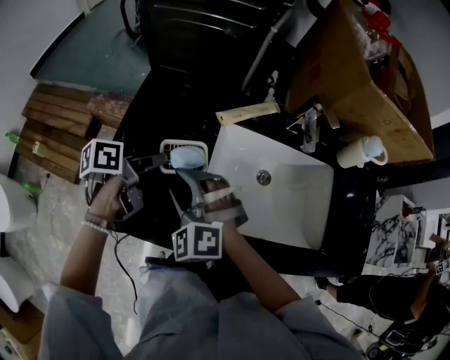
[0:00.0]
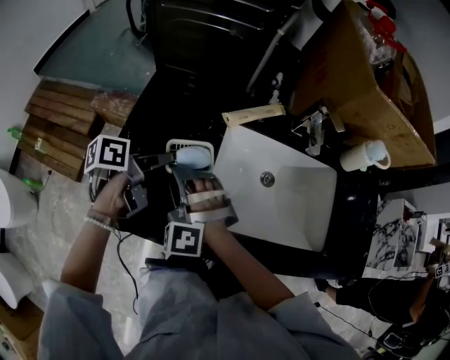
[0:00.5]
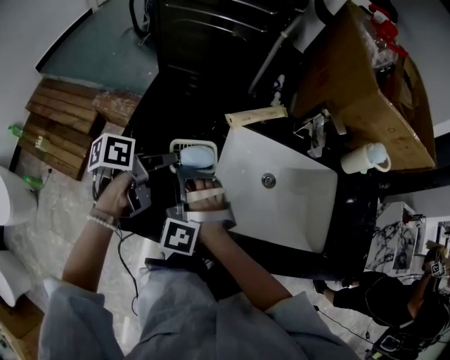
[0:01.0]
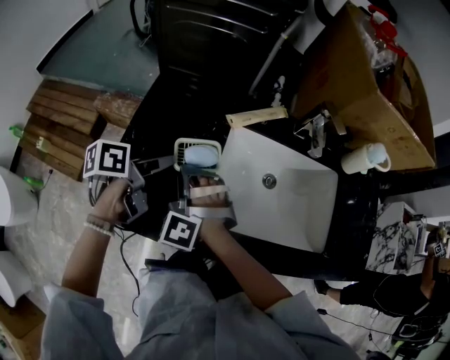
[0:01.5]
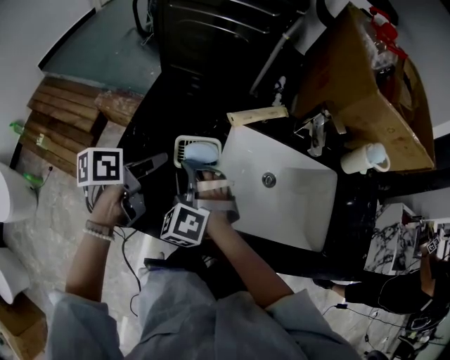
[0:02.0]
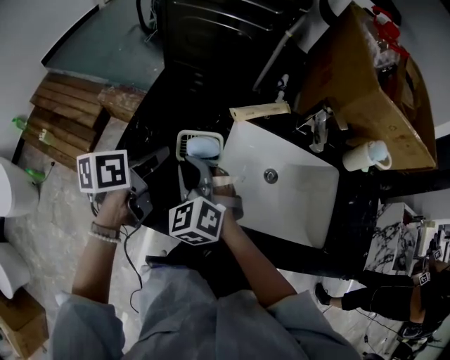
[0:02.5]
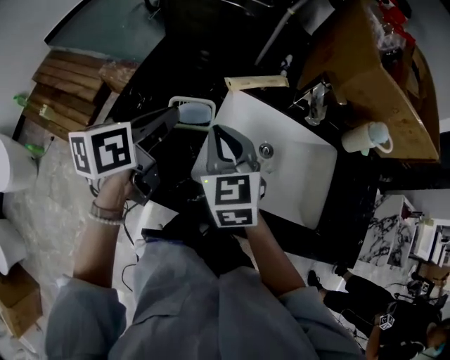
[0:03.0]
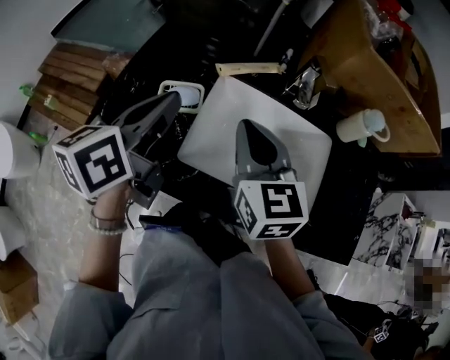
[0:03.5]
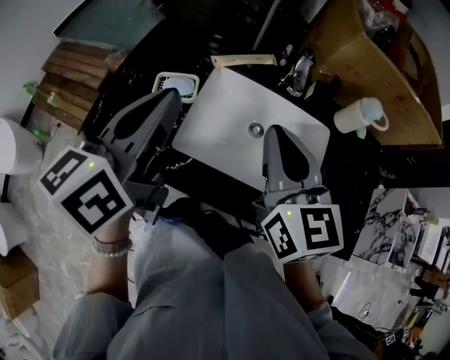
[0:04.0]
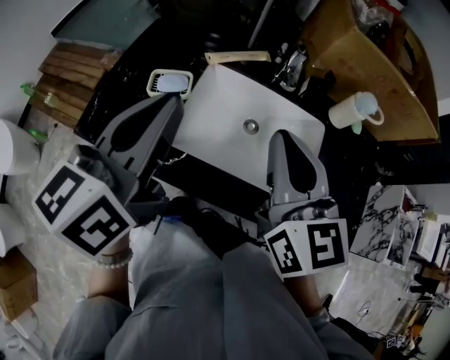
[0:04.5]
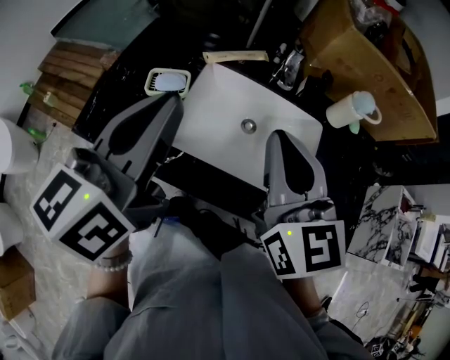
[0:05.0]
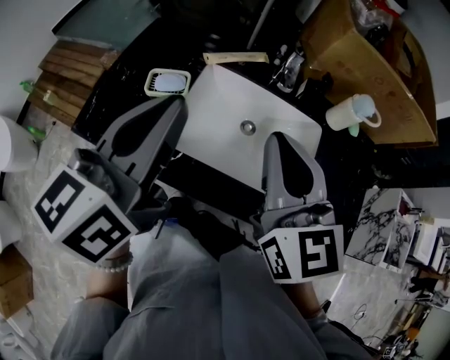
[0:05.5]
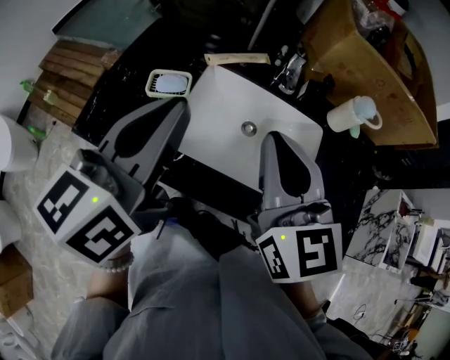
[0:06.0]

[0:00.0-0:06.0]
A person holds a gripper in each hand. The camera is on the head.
0:00.0 to 0:02.0: The right gripper closes its fingers.
0:02.0 to 0:04.0: The right gripper moves approximately 35 cm, rotates around the line of its fingers by approximately 60 degrees, clockwise from behind, and closes its fingers.

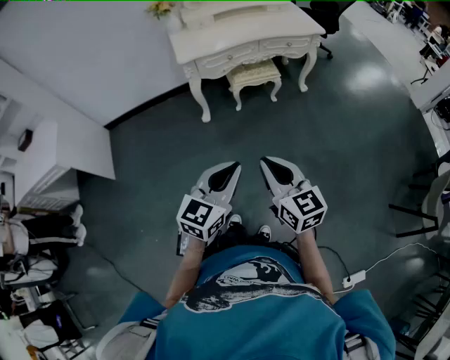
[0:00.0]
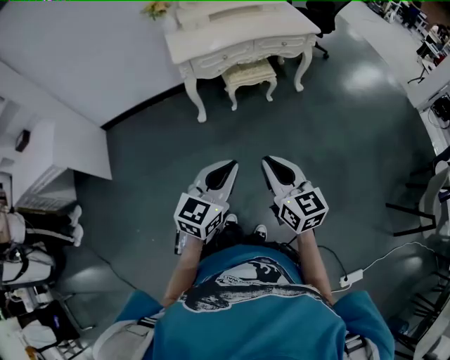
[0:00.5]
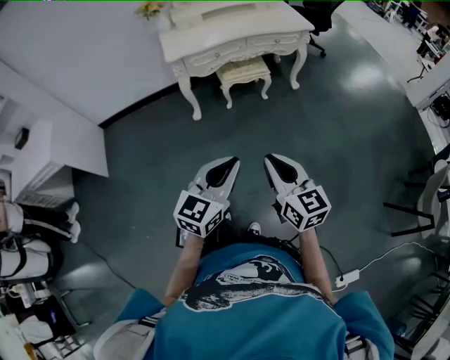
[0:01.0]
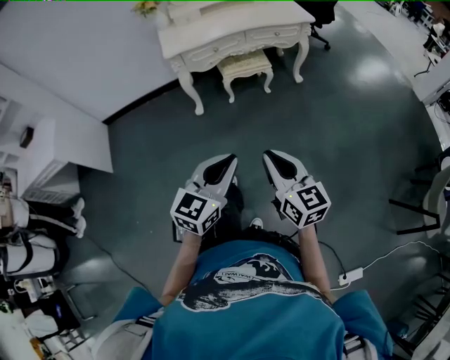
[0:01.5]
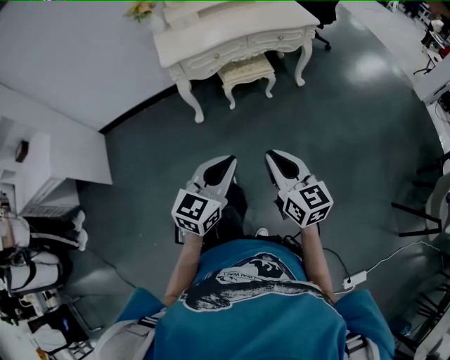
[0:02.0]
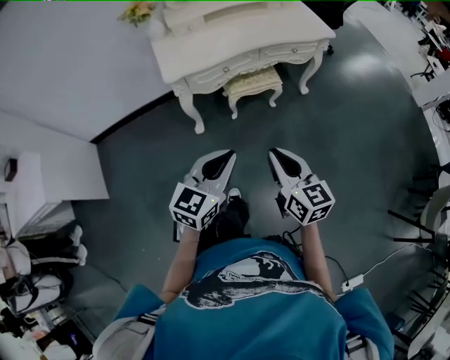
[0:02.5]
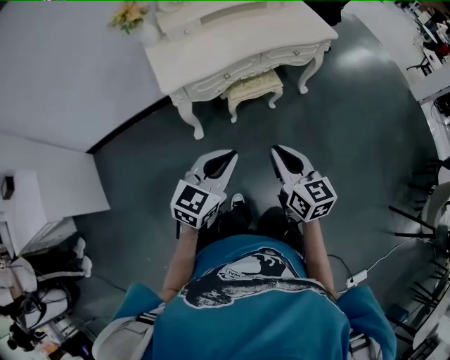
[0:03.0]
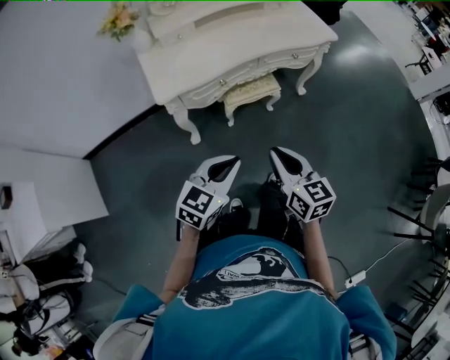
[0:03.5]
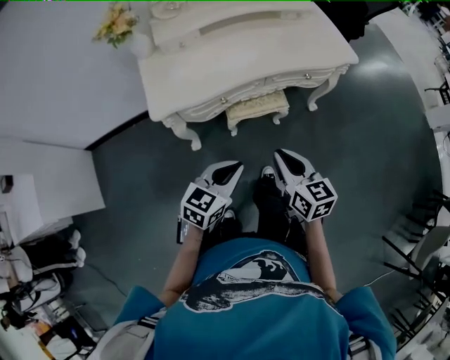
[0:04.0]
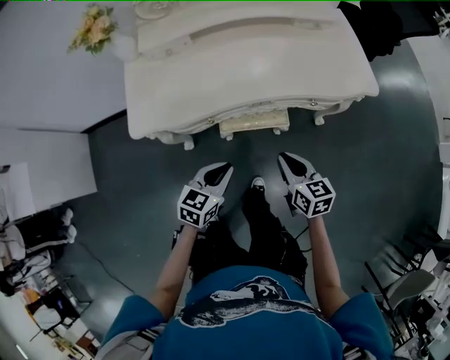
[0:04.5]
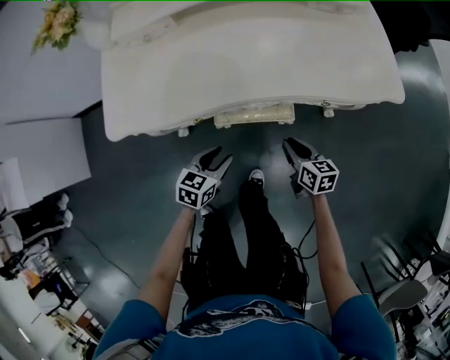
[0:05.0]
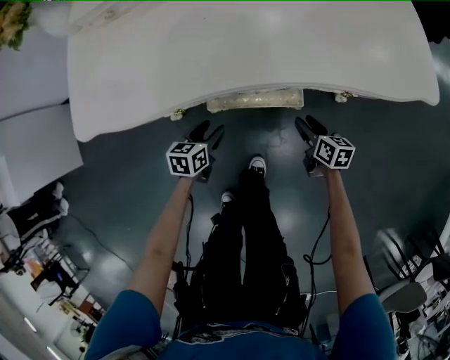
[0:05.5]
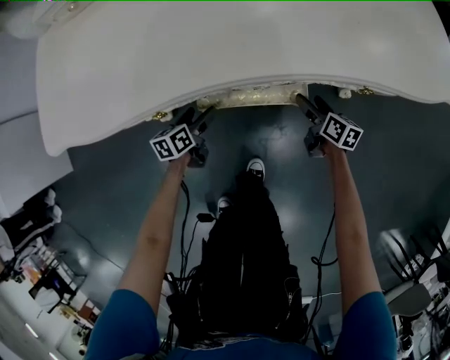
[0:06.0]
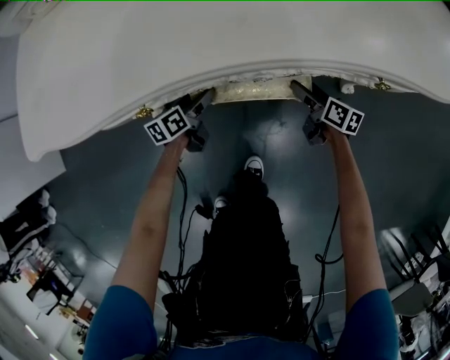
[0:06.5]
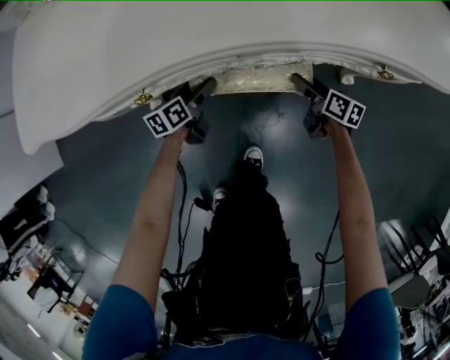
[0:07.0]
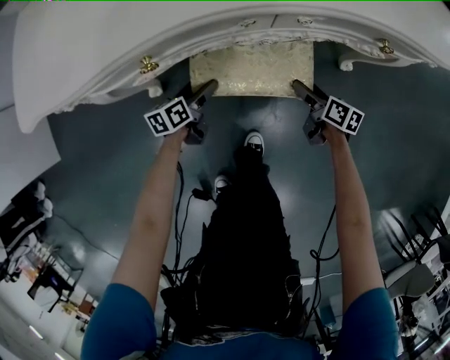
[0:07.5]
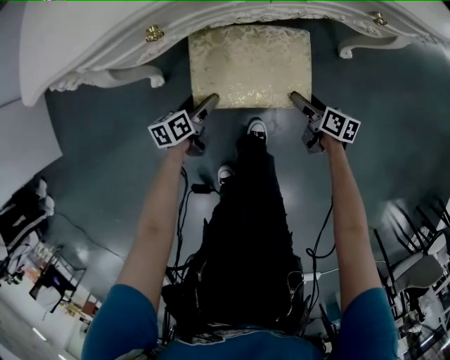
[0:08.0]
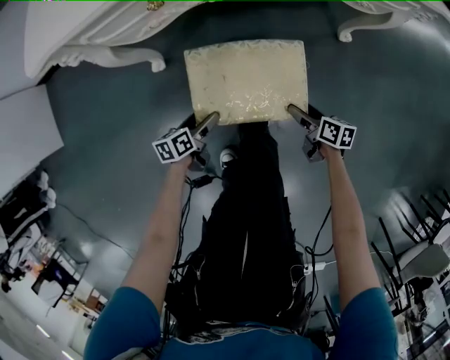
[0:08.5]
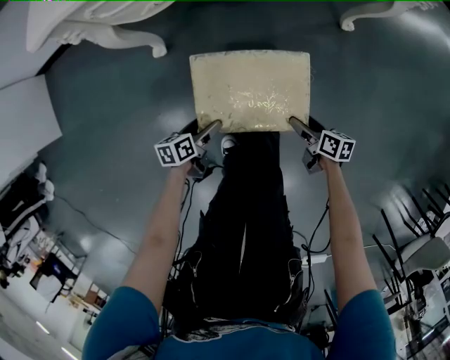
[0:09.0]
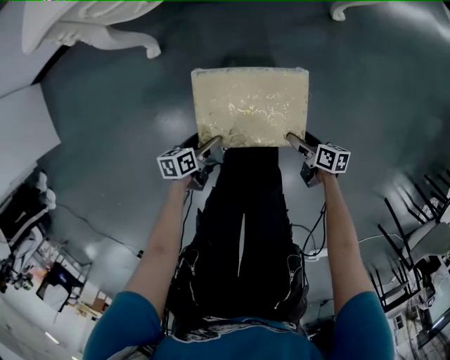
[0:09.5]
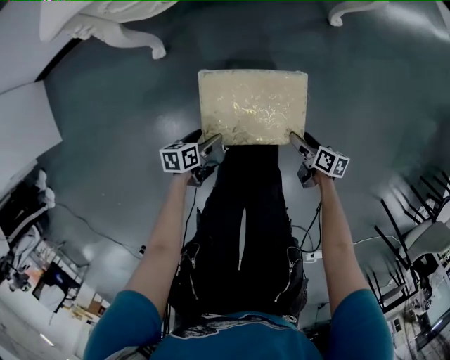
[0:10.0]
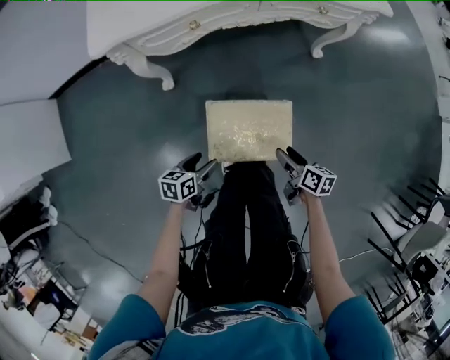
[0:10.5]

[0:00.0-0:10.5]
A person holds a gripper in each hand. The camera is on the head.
0:00.0 to 0:02.0: The right gripper heads forward and to the right, covering roughly 10 cm. Meanwhile the left gripper shifts approximately 10 cm forward.
0:02.0 to 0:04.0: The grippers both shift forward by some 40 cm.
0:04.0 to 0:06.5: Both grippers move downward and forward, roughly 60 cm. The left gripper rolls counterclockwise, seen from behind, by roughly 50 degrees, and opens. Meanwhile the right gripper turns by some 30 degrees, and opens up.
0:06.5 to 0:08.5: The two grippers go about 30 cm backward.
0:08.5 to 0:10.5: The grippers both shift upward and backward by some 25 cm. The left gripper turns by roughly 20 degrees.

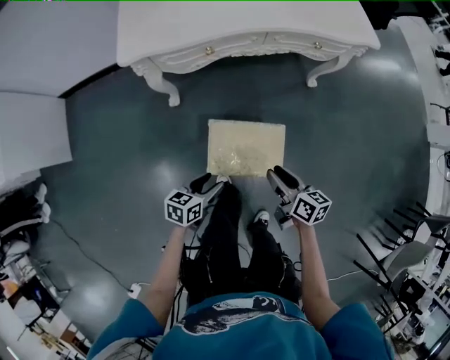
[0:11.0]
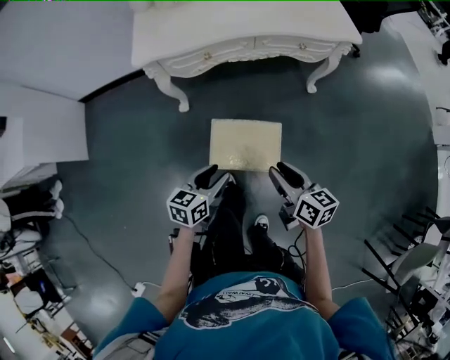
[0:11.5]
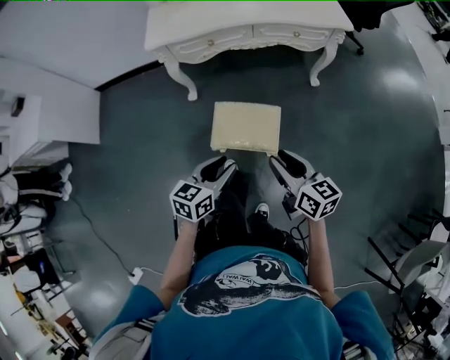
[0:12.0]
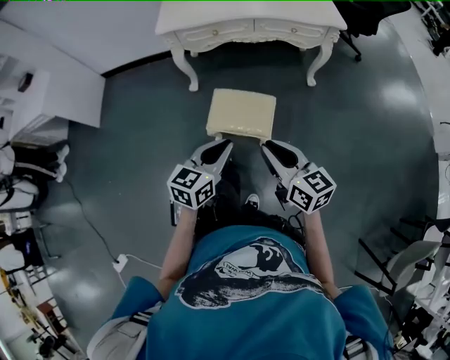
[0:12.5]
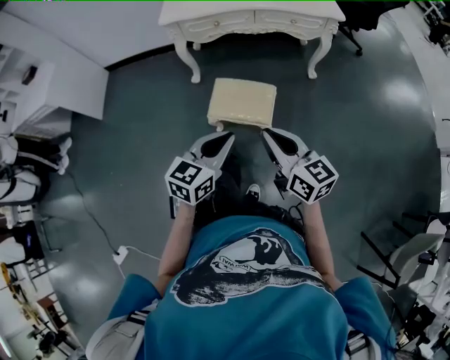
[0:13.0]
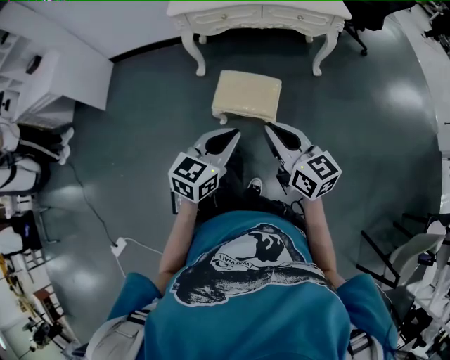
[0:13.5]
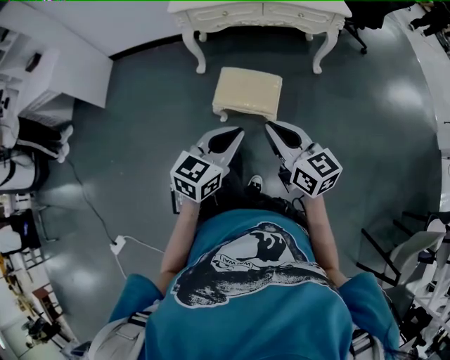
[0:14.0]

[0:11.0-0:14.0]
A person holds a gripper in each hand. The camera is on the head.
0:11.0 to 0:12.5: The left gripper heads upward, backward and to the right, covering roughly 35 cm, rotates approximately 30 degrees, and closes. The right gripper heads backward and upward, covering about 30 cm, and changes its angle by approximately 30 degrees.
0:12.5 to 0:14.0: The grippers both shift backward by about 10 cm.

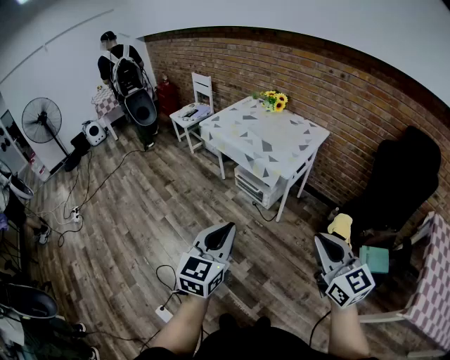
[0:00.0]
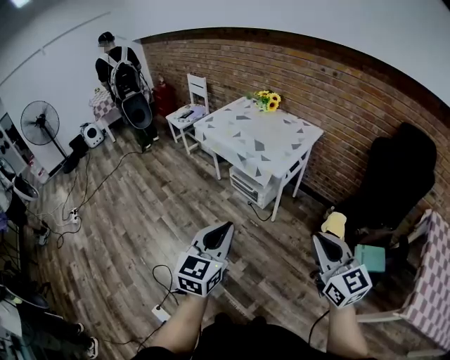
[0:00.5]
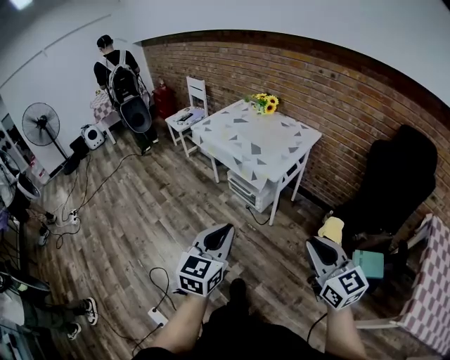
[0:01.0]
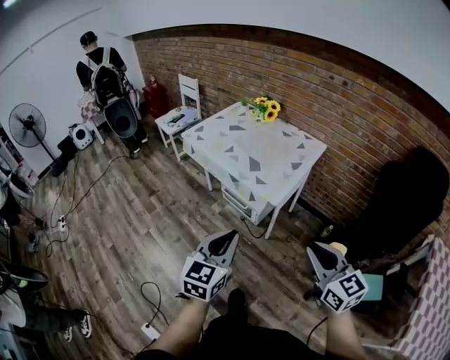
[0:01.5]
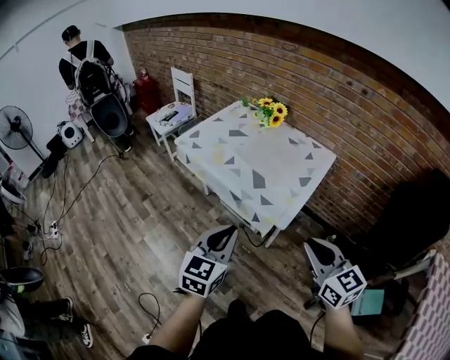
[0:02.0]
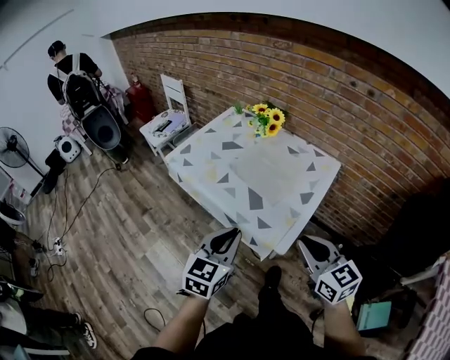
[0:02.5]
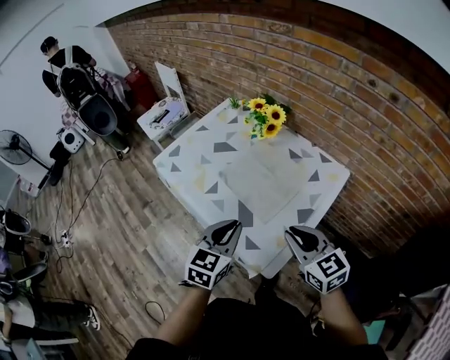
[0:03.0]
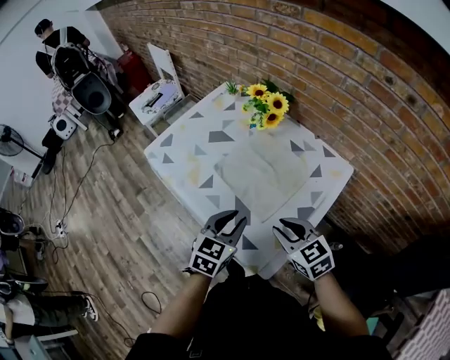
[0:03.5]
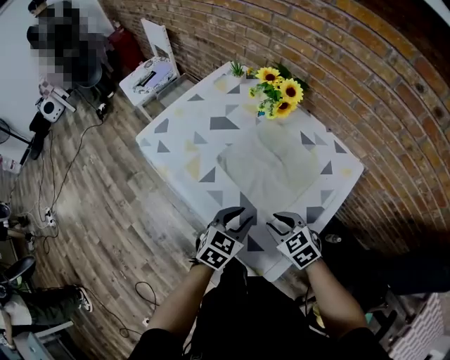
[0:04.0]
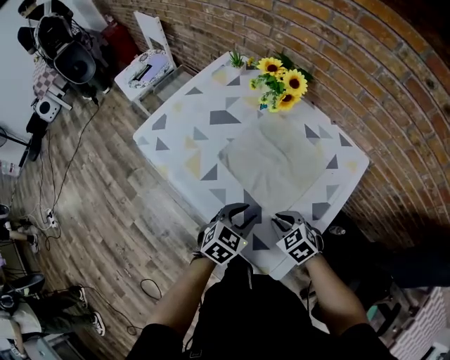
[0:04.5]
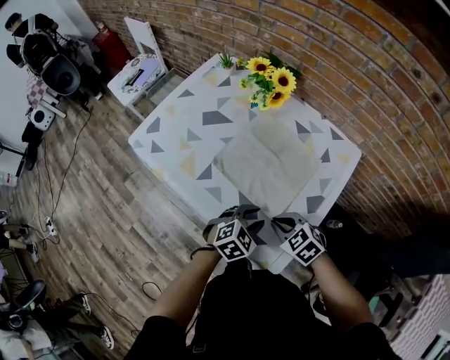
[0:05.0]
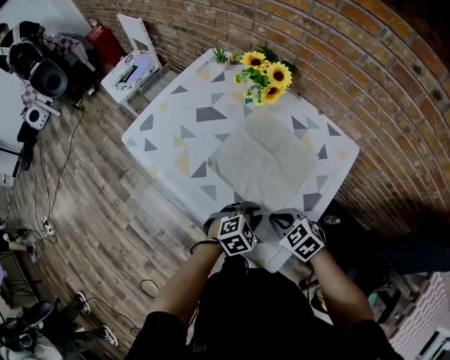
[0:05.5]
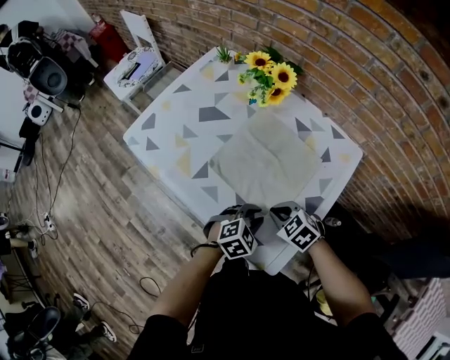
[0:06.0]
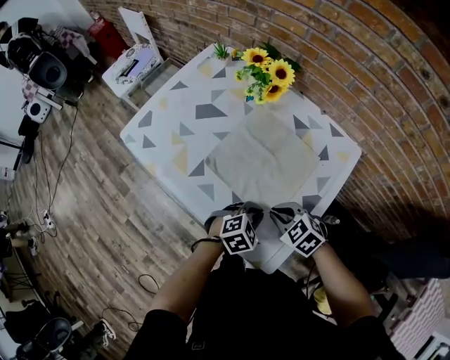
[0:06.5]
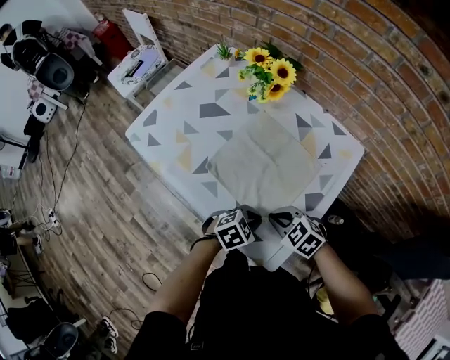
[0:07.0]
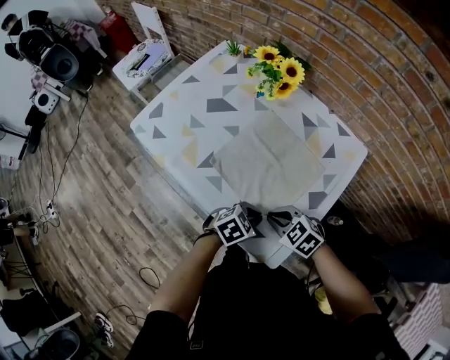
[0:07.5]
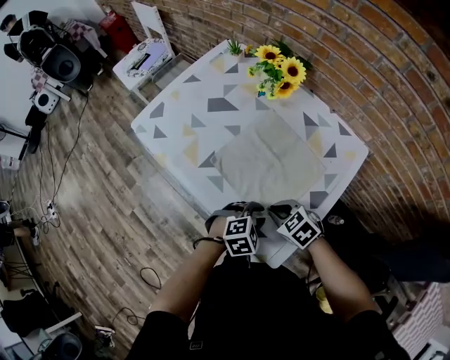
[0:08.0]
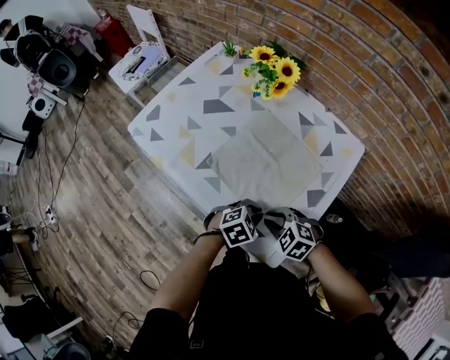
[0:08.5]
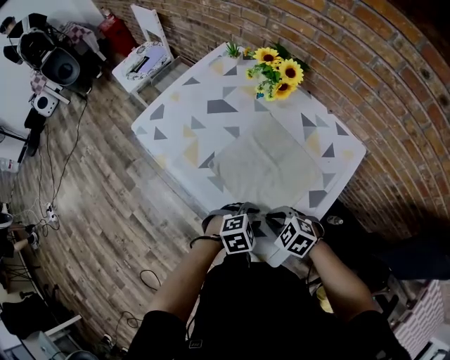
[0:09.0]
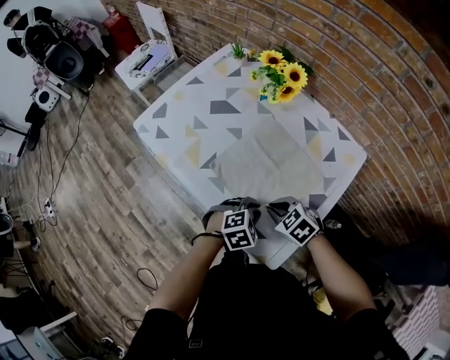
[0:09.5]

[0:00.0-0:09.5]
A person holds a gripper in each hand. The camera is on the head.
0:00.0 to 0:02.0: The two grippers go about 35 cm forward.
0:02.0 to 0:04.0: The grippers both shift forward and downward by roughly 40 cm. The right gripper tilts its fingers about 40 degrees downward, and opens. The left gripper swivels about 30 degrees, and opens.
0:04.0 to 0:05.5: The right gripper closes up. The left gripper heads downward and to the right, covering about 10 cm, and changes its angle by roughly 30 degrees.
0:05.5 to 0:07.5: The grippers stay close to where they were, moving slightly.
0:07.5 to 0:09.5: The left gripper turns by about 20 degrees.
